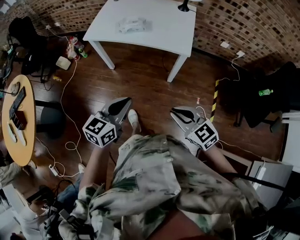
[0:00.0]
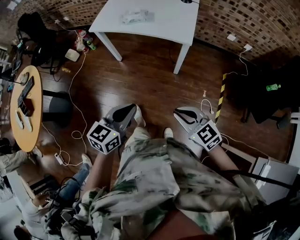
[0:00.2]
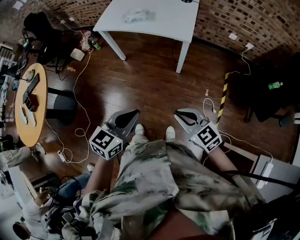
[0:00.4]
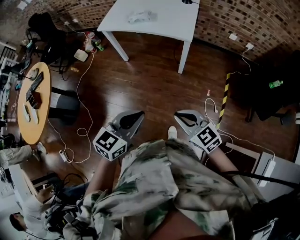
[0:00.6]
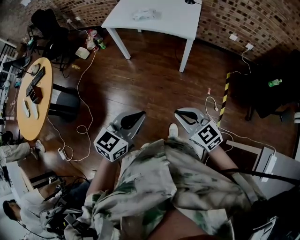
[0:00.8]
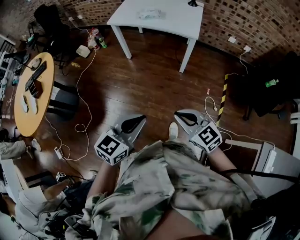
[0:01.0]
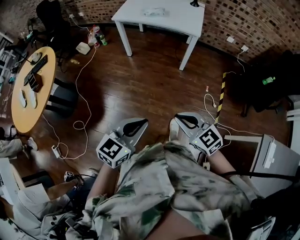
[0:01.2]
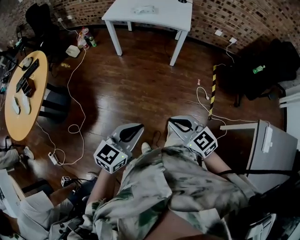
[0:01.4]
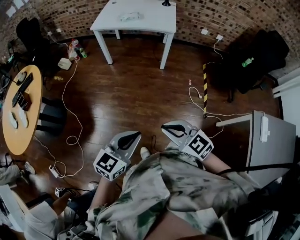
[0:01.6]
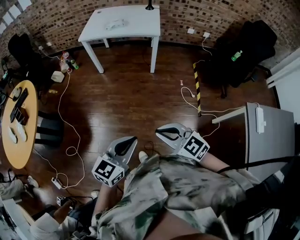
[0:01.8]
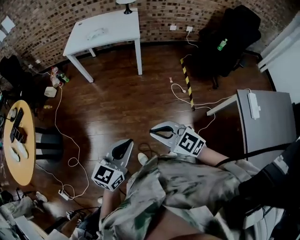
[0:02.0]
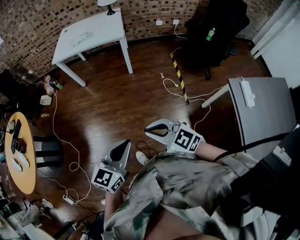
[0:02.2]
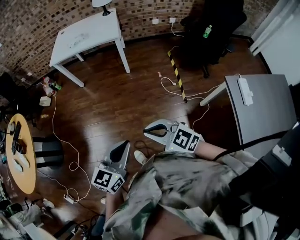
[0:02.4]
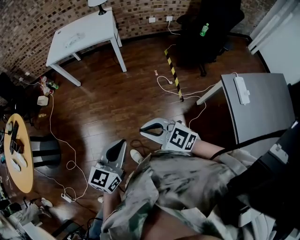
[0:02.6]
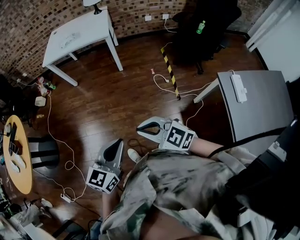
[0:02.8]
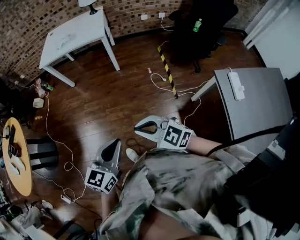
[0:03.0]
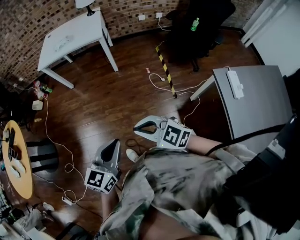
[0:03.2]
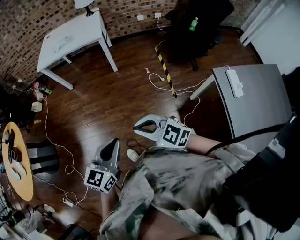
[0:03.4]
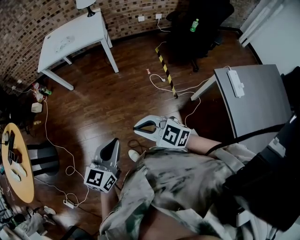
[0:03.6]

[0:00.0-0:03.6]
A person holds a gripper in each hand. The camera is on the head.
0.0 to 1.8 s: Both grippers are carried backward, roughly 40 cm.
1.8 to 3.6 s: Both grippers travel together to the right, roughly 10 cm.

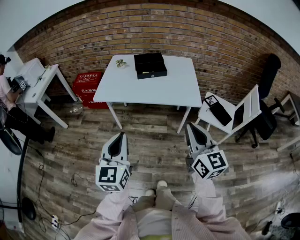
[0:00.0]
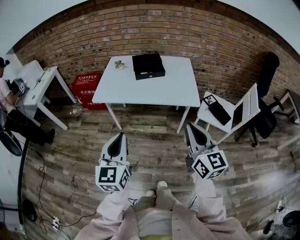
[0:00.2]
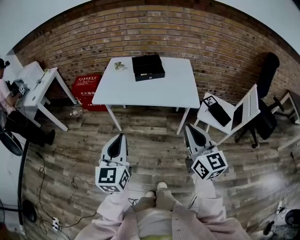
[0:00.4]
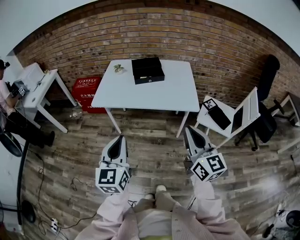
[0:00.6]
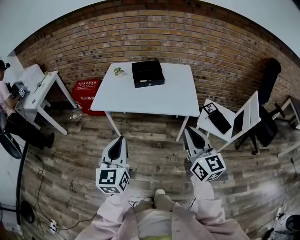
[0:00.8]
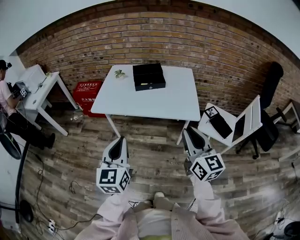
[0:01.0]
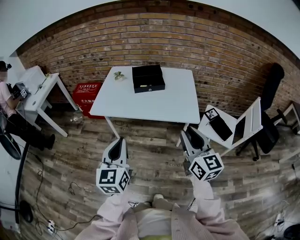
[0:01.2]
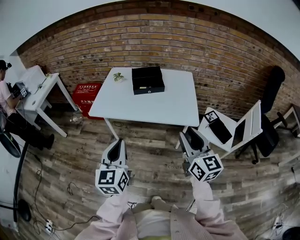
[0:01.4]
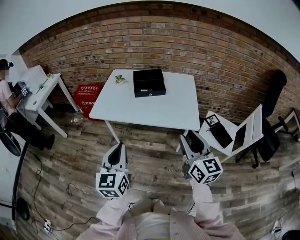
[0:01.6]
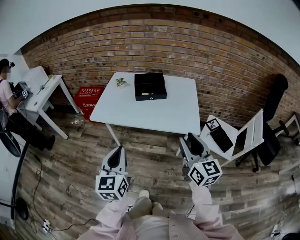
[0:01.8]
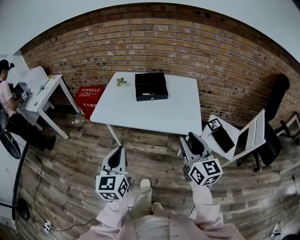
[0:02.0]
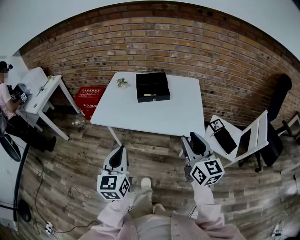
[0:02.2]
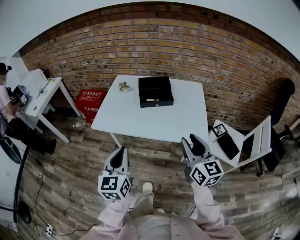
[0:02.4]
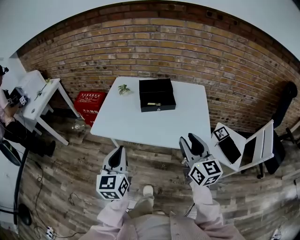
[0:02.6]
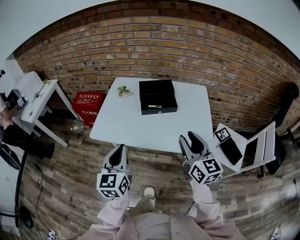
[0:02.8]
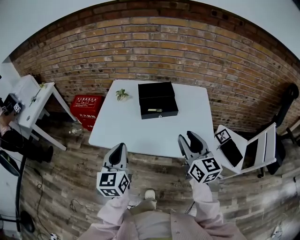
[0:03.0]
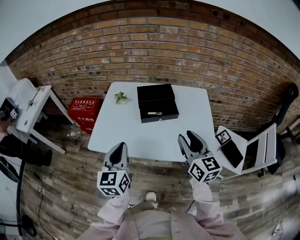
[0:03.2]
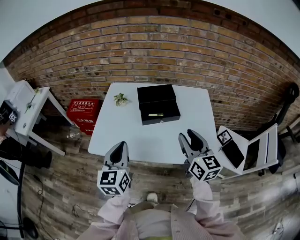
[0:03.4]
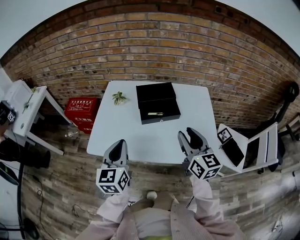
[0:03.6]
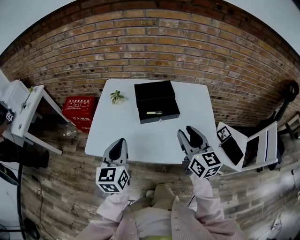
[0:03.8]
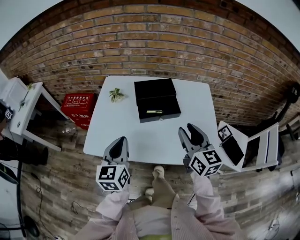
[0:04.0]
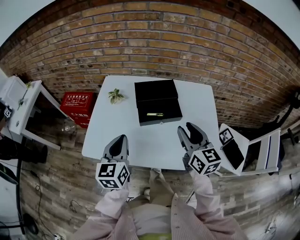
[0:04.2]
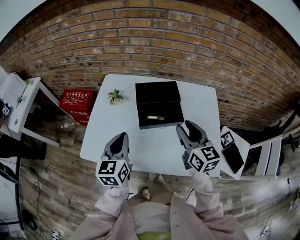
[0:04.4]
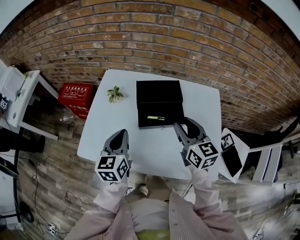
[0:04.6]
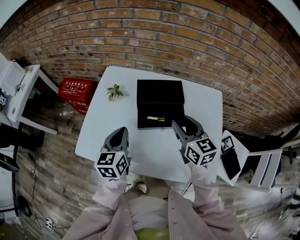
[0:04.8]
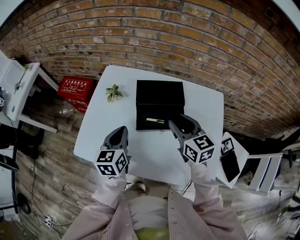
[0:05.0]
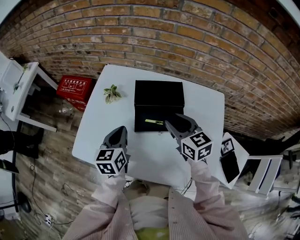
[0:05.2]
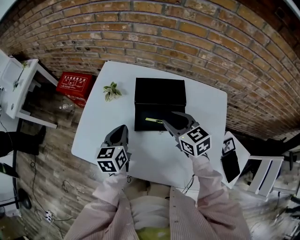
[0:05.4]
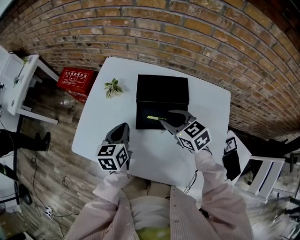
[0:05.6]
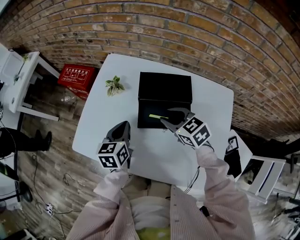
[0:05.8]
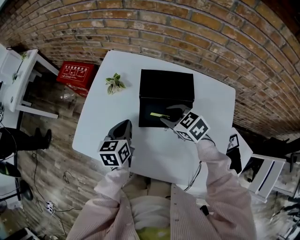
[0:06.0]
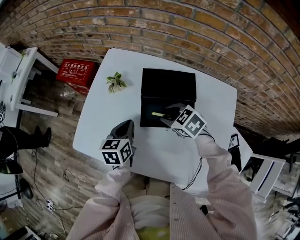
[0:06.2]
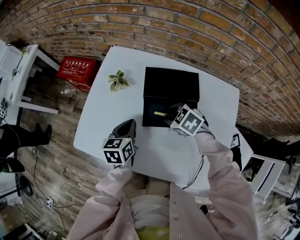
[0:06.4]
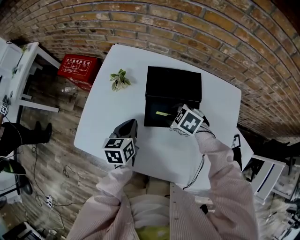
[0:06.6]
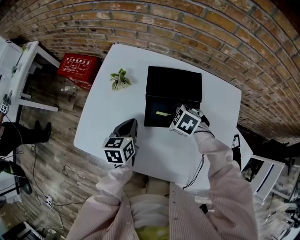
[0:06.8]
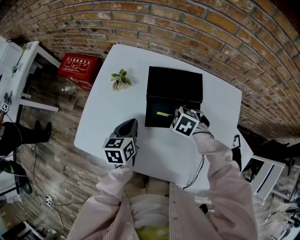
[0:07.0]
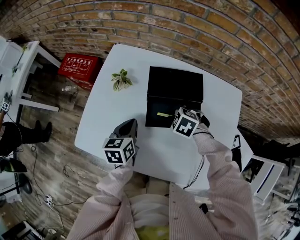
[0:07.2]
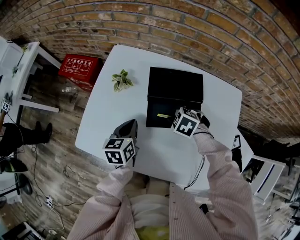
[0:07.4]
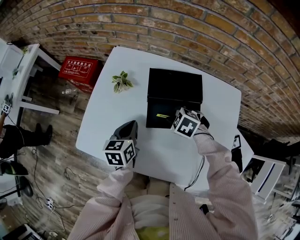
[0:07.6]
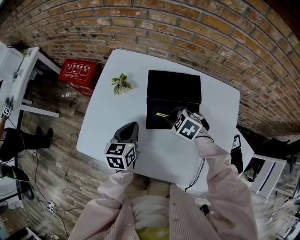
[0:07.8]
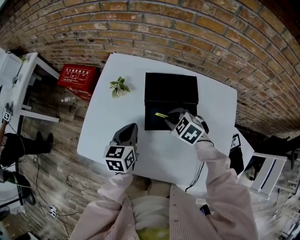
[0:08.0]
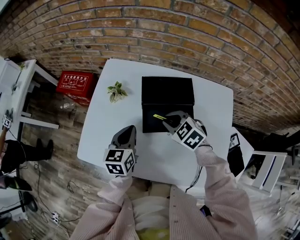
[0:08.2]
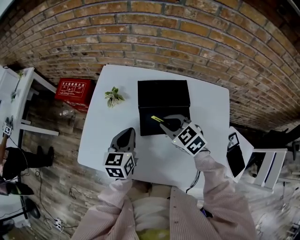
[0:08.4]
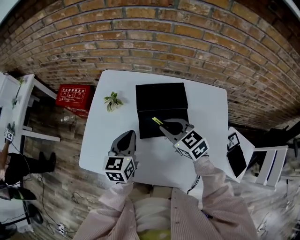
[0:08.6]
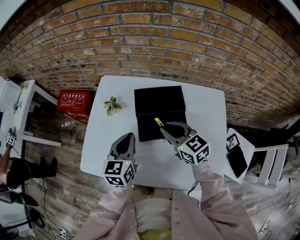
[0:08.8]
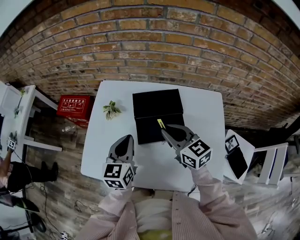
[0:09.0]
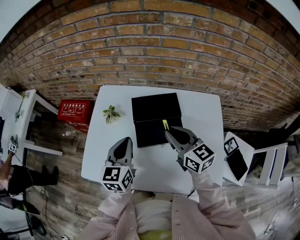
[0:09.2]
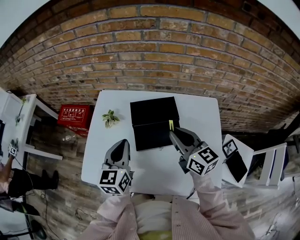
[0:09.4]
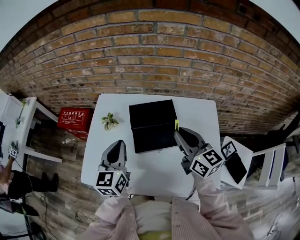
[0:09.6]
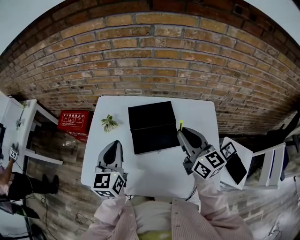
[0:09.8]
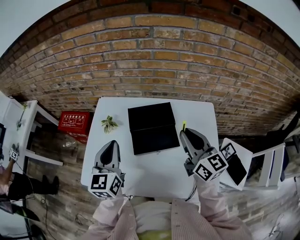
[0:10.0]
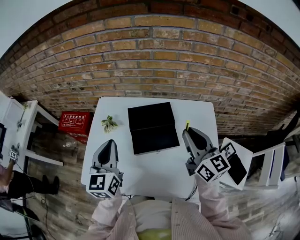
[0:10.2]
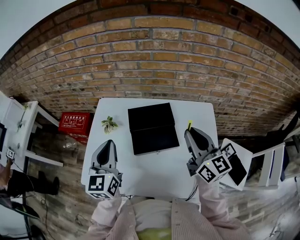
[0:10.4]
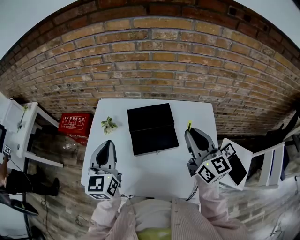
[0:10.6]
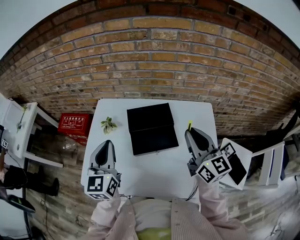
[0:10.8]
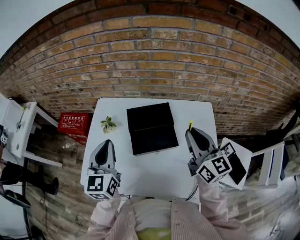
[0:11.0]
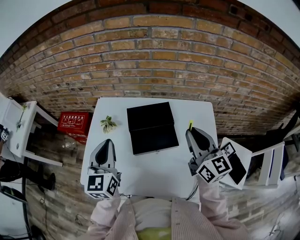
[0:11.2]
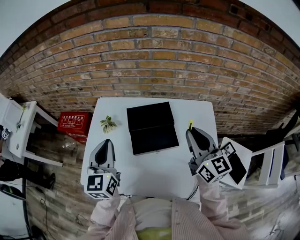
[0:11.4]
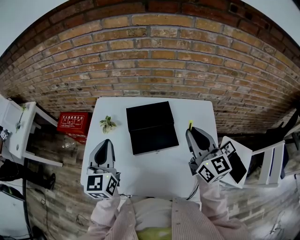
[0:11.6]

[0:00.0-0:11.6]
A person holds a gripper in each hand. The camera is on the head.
0.0 to 1.4 s: The right gripper heads forward and to the right, covering about 10 cm, and opens its fingers, while the left gripper shifts approximately 10 cm forward.
1.4 to 2.8 s: Both grippers move forward, approximately 20 cm.
2.8 to 4.4 s: The grippers both shift forward by roughly 20 cm.
4.4 to 5.8 s: The right gripper moves forward, downward and to the left, some 20 cm, and swivels approximately 50 degrees, while the left gripper travels downward and forward by roughly 15 cm.
5.8 to 7.2 s: The right gripper moves downward, about 10 cm, and tilts its fingers some 30 degrees downward.
7.2 to 8.8 s: The left gripper moves upward, approximately 10 cm, and swivels roughly 20 degrees. The right gripper travels upward by some 15 cm, and angles its fingers upward, by some 50 degrees.
8.8 to 10.2 s: The right gripper heads upward and to the right, covering about 20 cm, and rotates roughly 30 degrees. The left gripper goes about 10 cm upward.
10.2 to 11.6 s: The grippers make only small movements.

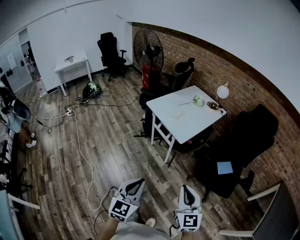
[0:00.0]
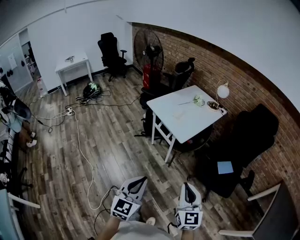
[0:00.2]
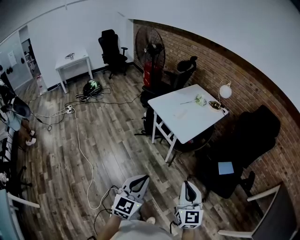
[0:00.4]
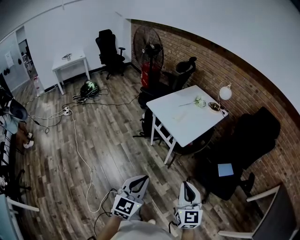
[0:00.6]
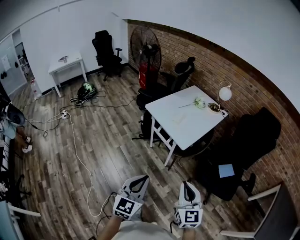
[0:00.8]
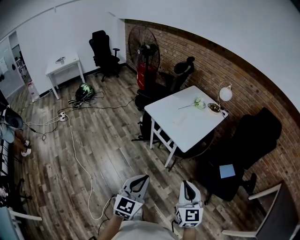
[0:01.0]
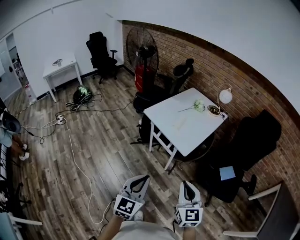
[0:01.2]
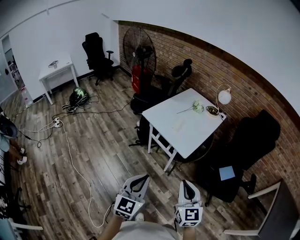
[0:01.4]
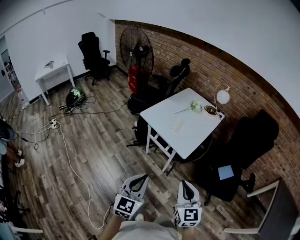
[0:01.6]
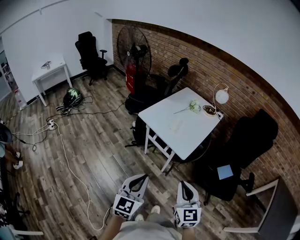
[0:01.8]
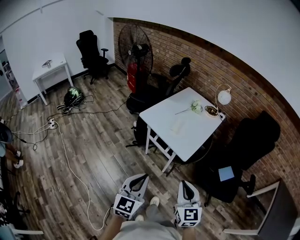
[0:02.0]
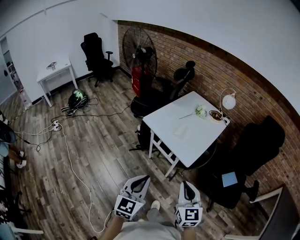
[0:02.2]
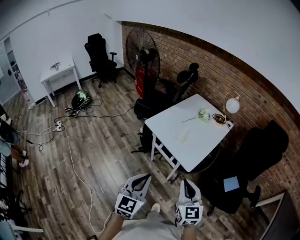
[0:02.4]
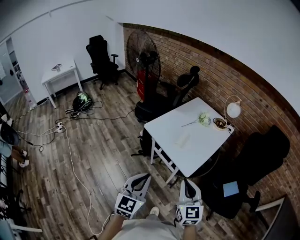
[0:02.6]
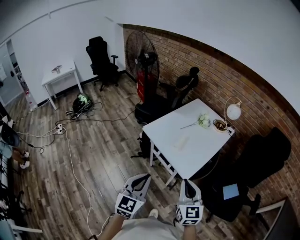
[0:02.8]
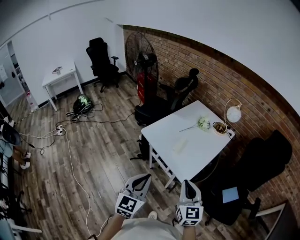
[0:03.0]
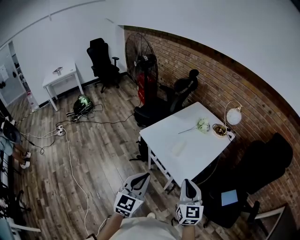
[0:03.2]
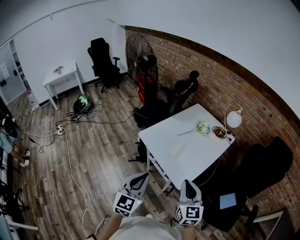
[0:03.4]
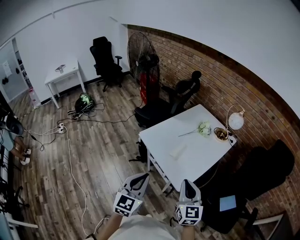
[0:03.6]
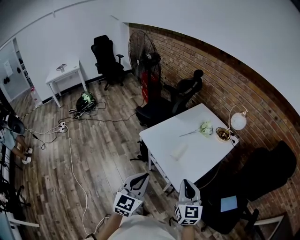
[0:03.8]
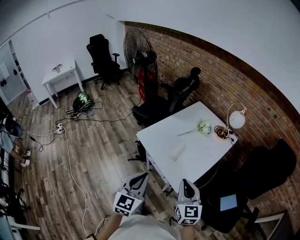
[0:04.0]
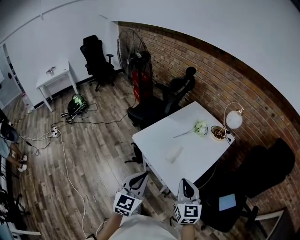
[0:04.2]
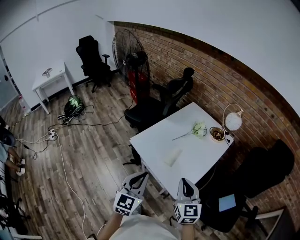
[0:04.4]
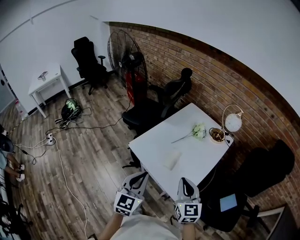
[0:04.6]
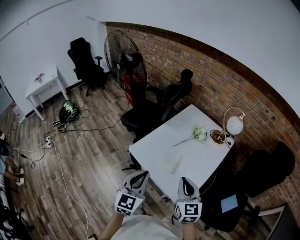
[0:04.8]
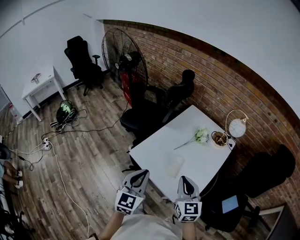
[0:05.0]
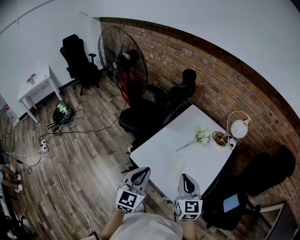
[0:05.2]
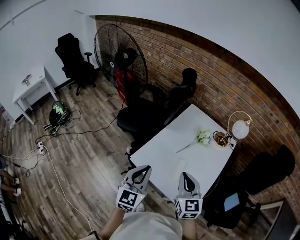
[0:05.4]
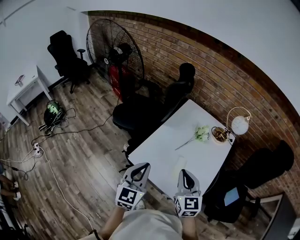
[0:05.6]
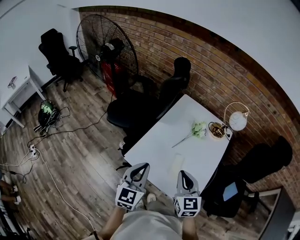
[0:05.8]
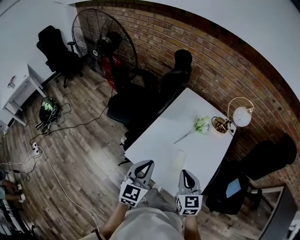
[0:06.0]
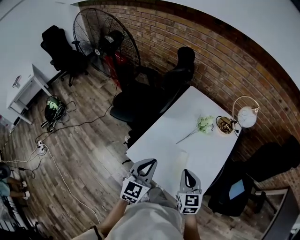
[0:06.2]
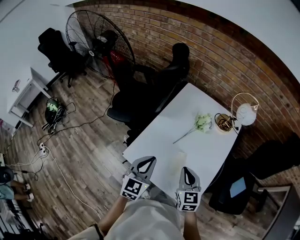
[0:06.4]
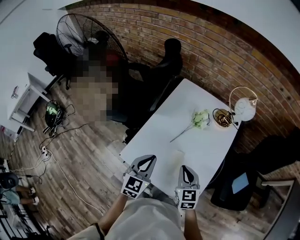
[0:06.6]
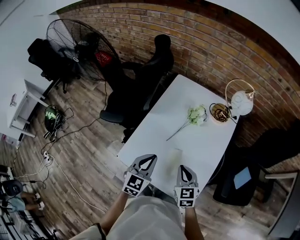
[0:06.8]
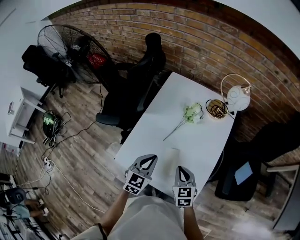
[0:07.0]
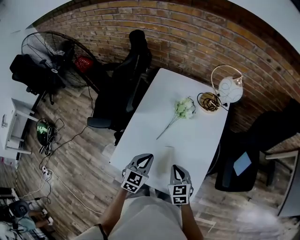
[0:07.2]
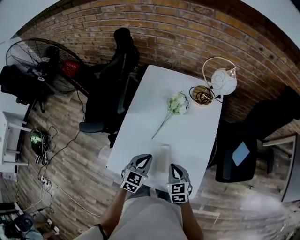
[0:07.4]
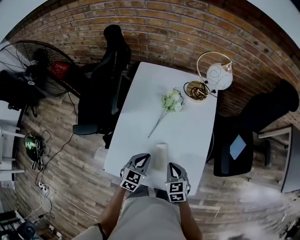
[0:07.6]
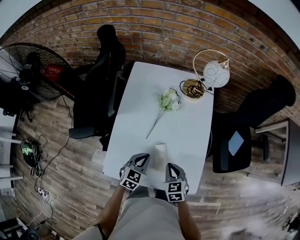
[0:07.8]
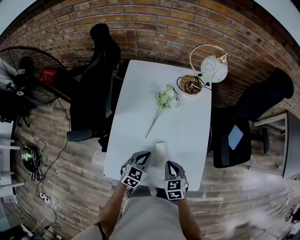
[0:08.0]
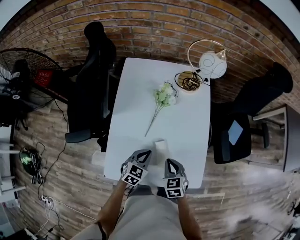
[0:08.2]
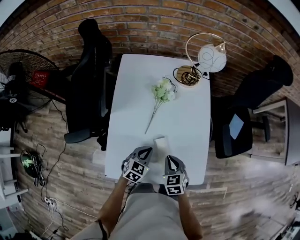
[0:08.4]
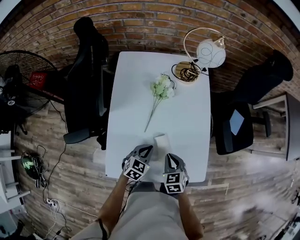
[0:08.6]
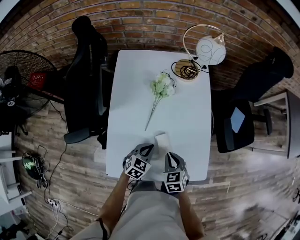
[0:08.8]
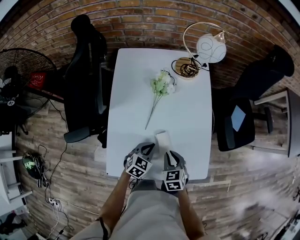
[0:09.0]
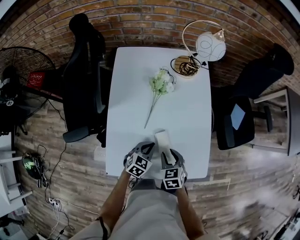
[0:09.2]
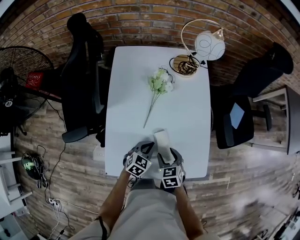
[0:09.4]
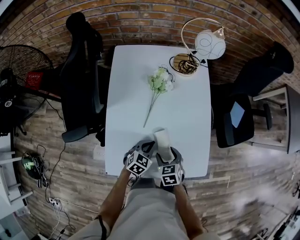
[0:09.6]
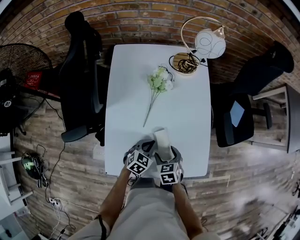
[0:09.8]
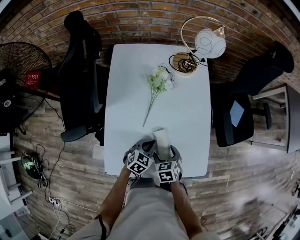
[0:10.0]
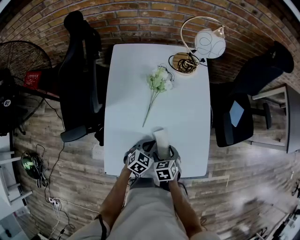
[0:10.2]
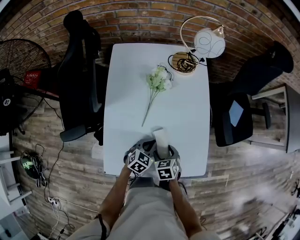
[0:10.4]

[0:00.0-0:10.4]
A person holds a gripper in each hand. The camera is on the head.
0.0 to 1.4 s: The two grippers go roughly 20 cm forward and to the left.
1.4 to 3.0 s: The grippers both shift forward by about 20 cm.
3.0 to 4.4 s: Both grippers move forward, some 15 cm.
4.4 to 6.0 s: The left gripper heads forward, covering approximately 25 cm, while the right gripper goes some 20 cm forward and to the left.
6.0 to 7.4 s: The right gripper travels downward by about 15 cm, and turns by some 20 degrees. Meanwhile the left gripper is displaced downward, to the right and forward by about 25 cm, and turns by about 30 degrees.
7.4 to 9.0 s: The right gripper goes about 5 cm downward; the left gripper heads downward, covering about 10 cm, and rotates about 30 degrees.
9.0 to 10.4 s: The right gripper shifts some 5 cm downward, and opens up.
